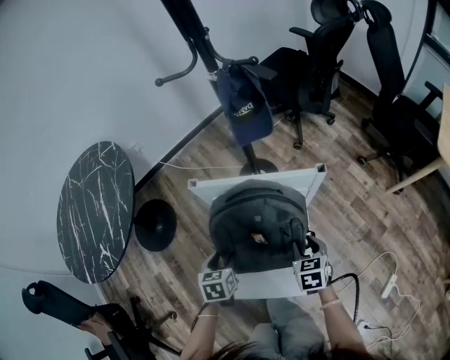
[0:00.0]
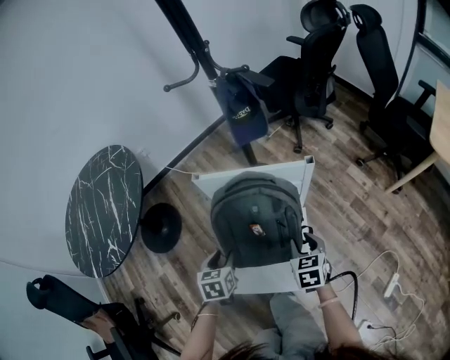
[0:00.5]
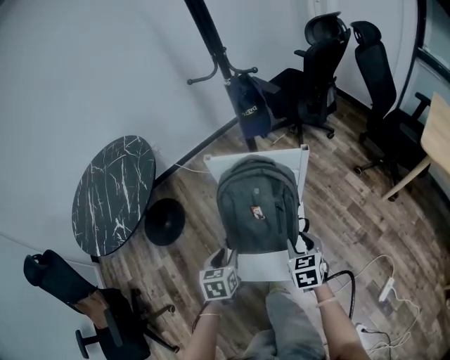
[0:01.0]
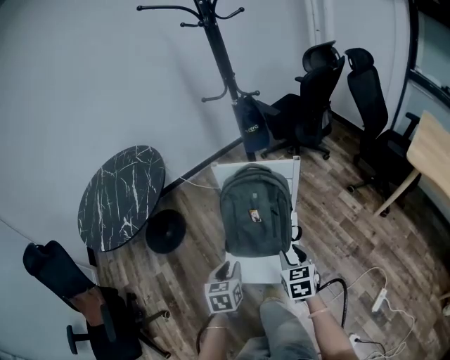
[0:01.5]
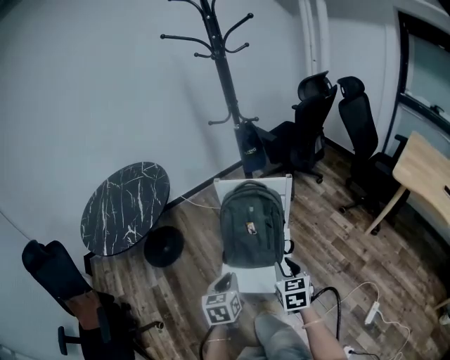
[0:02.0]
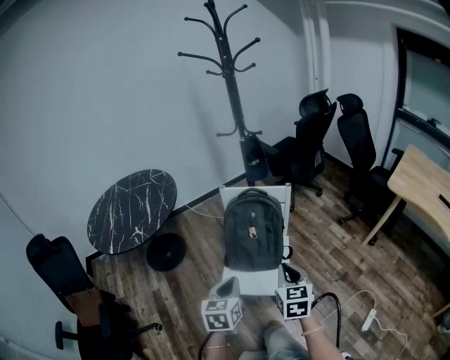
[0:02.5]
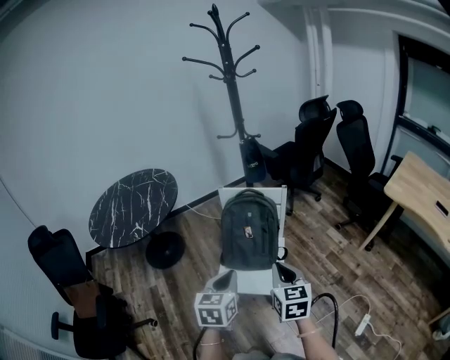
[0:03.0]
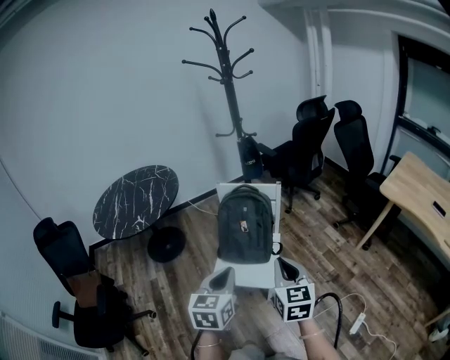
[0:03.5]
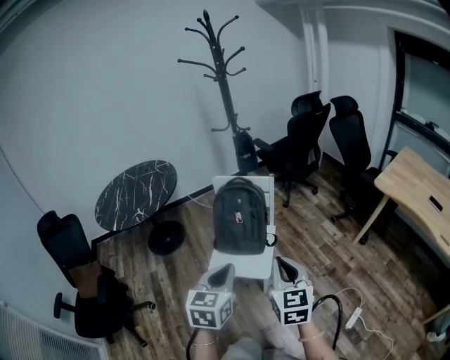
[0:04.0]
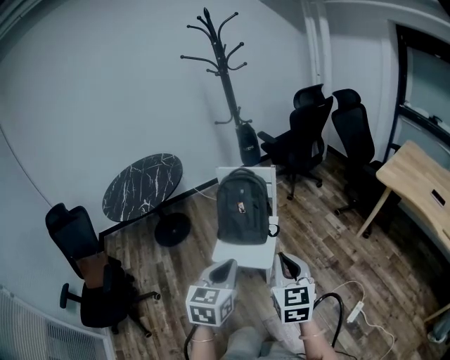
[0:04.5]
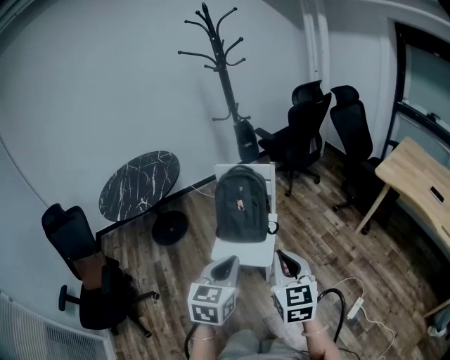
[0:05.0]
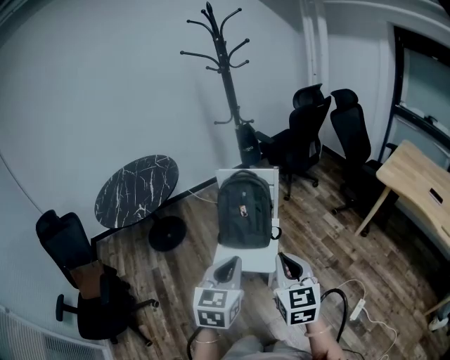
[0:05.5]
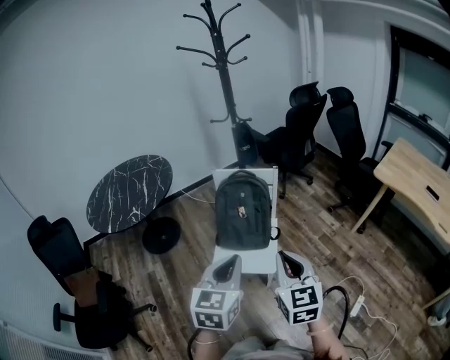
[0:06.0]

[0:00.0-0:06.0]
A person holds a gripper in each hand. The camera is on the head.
0:00.0 to 0:02.0: Both grippers travel together backward and upward, some 35 cm. The left gripper swivels about 20 degrees, and closes up.
0:02.0 to 0:04.0: Both grippers travel together backward, upward and to the right, about 30 cm. The right gripper closes up.
0:04.0 to 0:06.0: The two grippers go some 5 cm to the left.

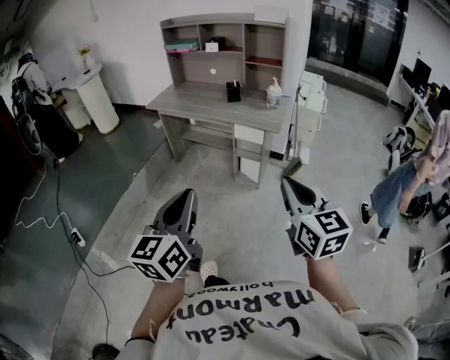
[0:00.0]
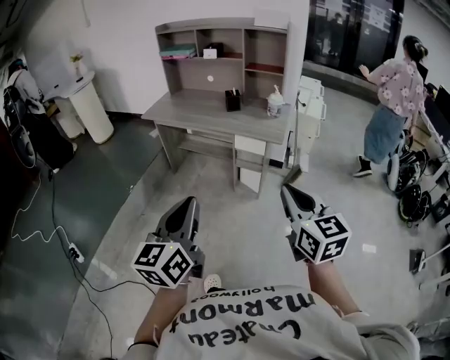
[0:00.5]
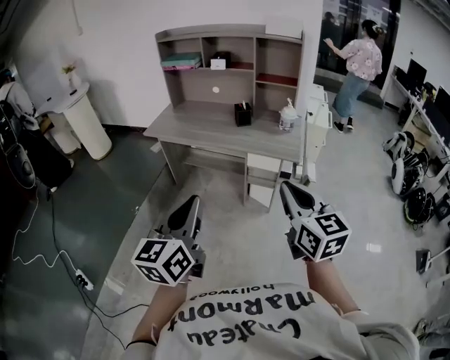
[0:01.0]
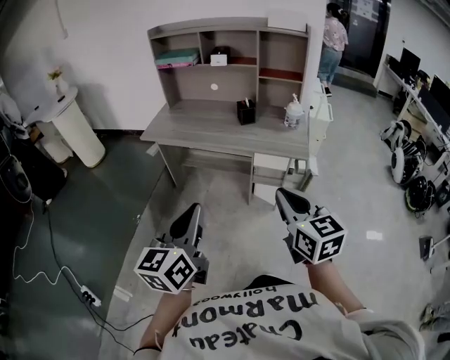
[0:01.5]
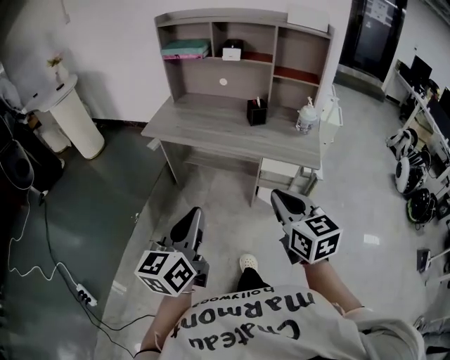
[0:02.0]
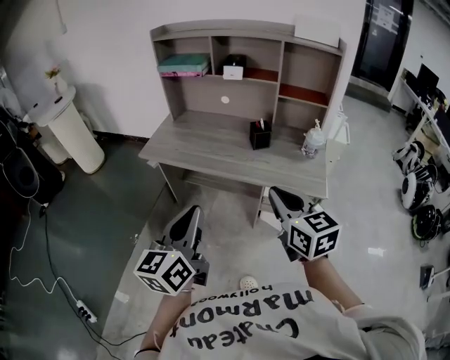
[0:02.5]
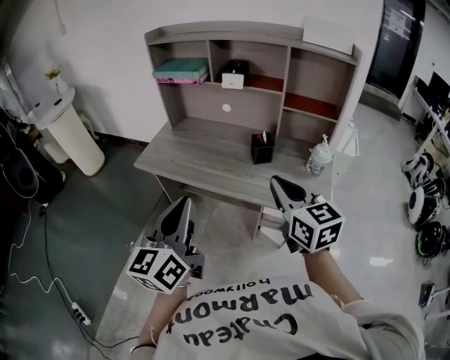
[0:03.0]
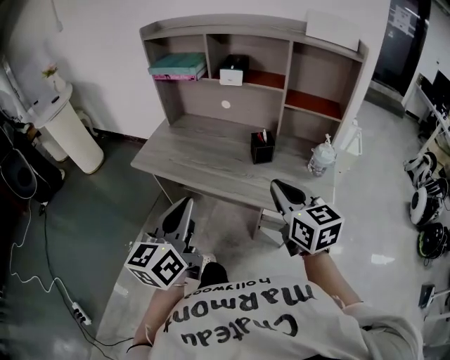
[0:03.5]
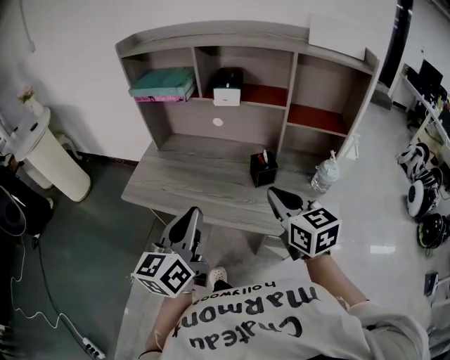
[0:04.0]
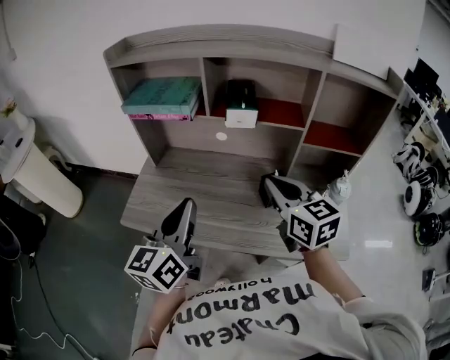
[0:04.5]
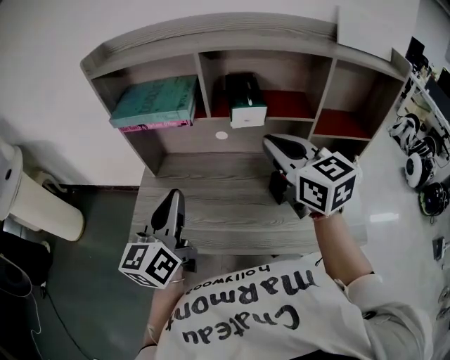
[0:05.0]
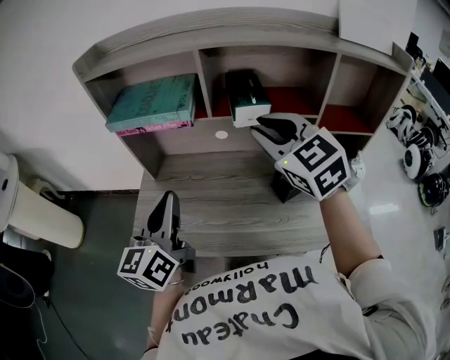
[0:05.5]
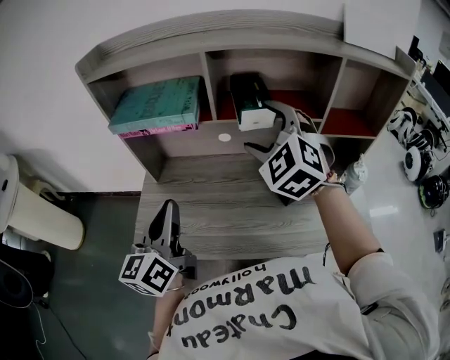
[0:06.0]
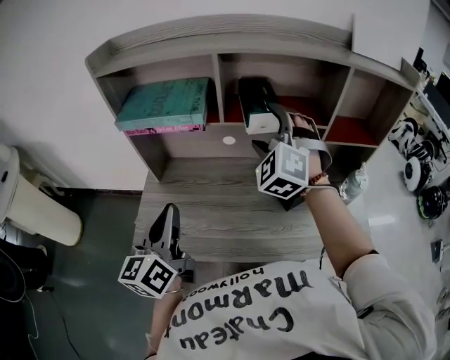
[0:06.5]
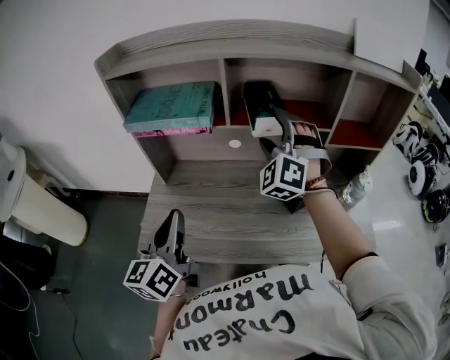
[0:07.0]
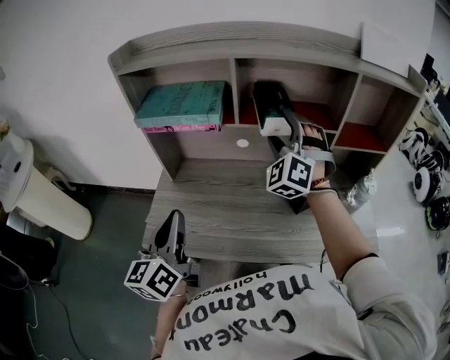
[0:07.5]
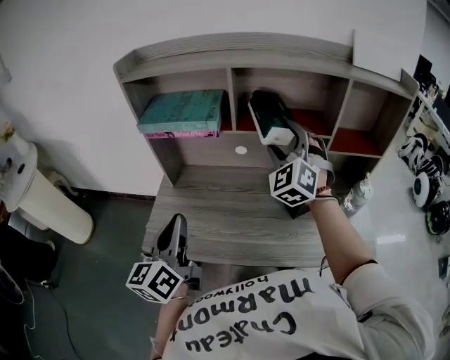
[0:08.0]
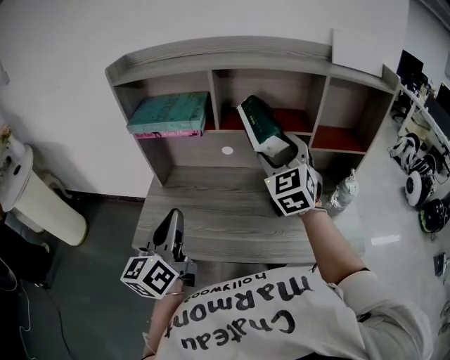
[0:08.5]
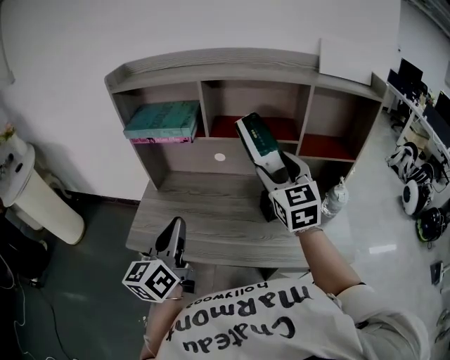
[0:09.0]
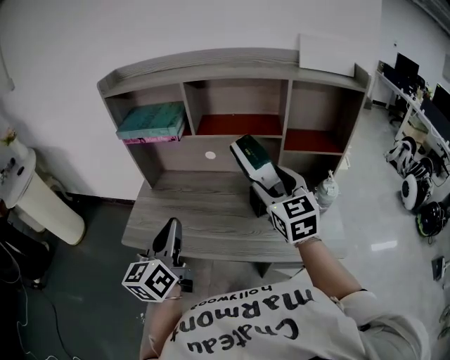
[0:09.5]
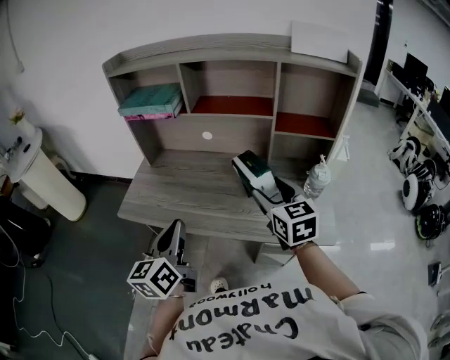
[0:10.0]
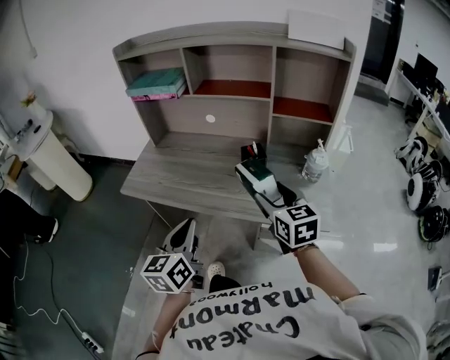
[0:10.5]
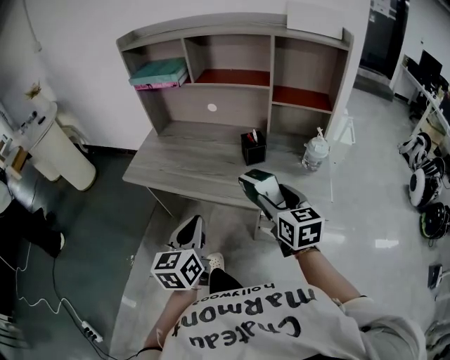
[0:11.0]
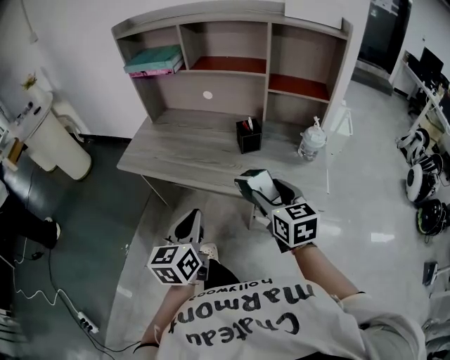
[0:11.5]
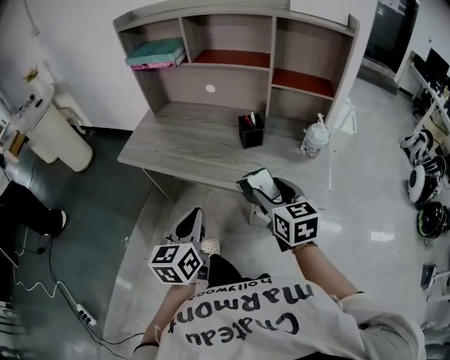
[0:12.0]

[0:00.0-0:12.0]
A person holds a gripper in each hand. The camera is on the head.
0:00.0 to 0:02.0: Both grippers move forward and to the left, some 35 cm.
0:02.0 to 0:04.0: The grippers both shift forward by roughly 35 cm.
0:04.0 to 0:06.0: Both grippers move forward and to the left, roughly 30 cm. The right gripper twists roughly 50 degrees counterclockwise, seen from behind, and opens its fingers.
0:06.0 to 0:08.0: The left gripper shifts by about 5 cm.
0:08.0 to 0:10.0: The left gripper moves to the right and backward, some 20 cm. Meanwhile the right gripper shifts about 25 cm backward, to the right and downward, and rotates around the line of its fingers by some 50 degrees, clockwise from behind.
0:10.0 to 0:12.0: The left gripper shifts about 20 cm backward, to the right and downward. Meanwhile the right gripper heads backward and downward, covering approximately 15 cm.

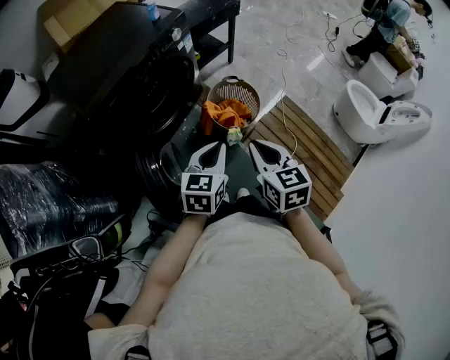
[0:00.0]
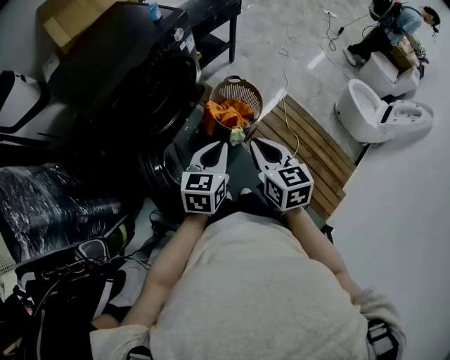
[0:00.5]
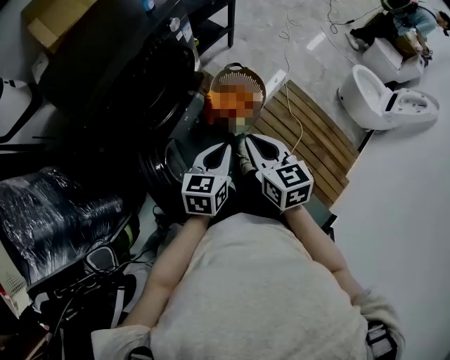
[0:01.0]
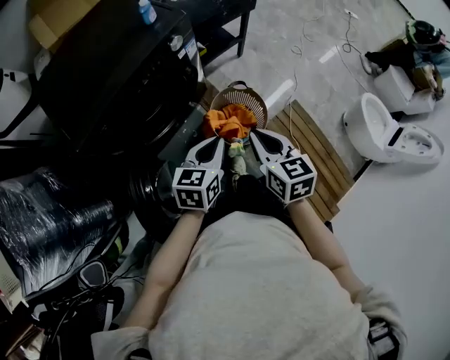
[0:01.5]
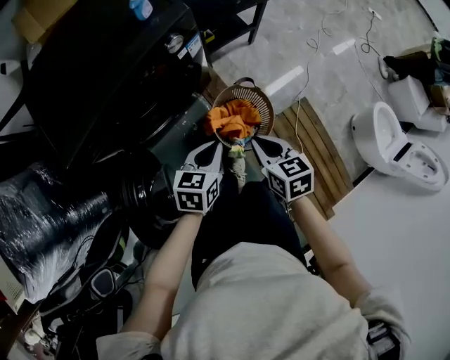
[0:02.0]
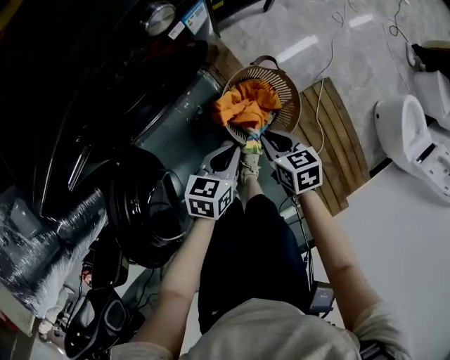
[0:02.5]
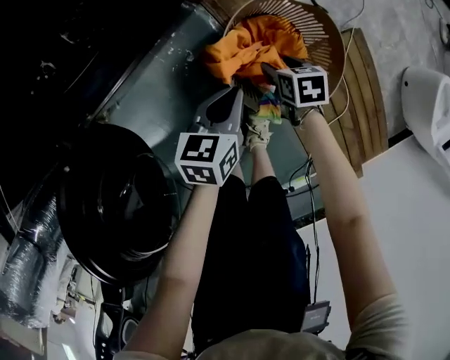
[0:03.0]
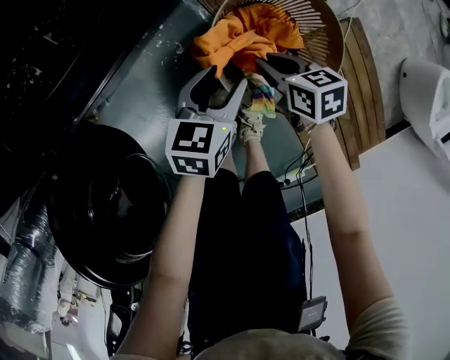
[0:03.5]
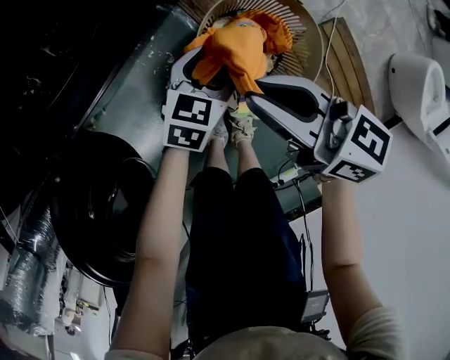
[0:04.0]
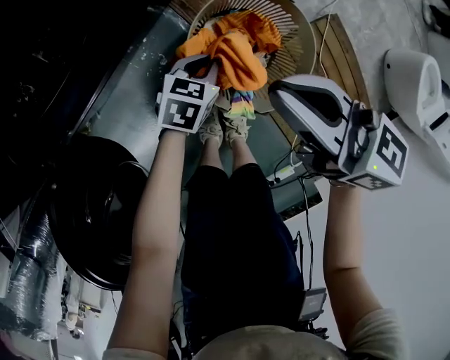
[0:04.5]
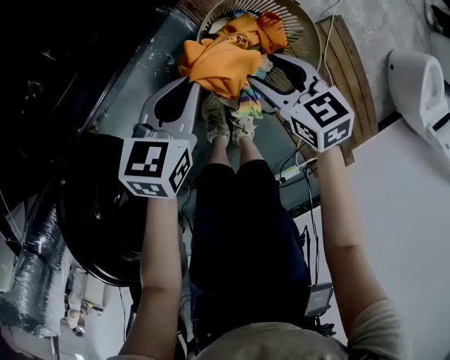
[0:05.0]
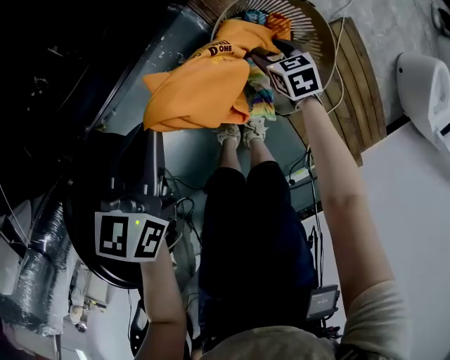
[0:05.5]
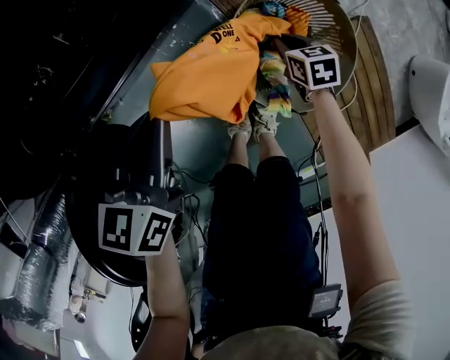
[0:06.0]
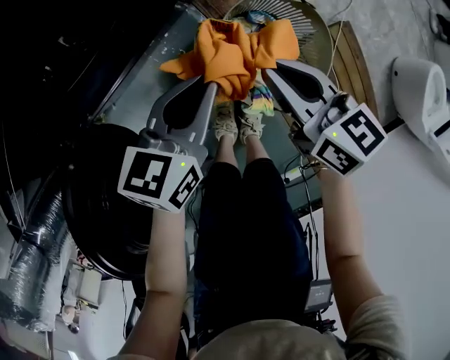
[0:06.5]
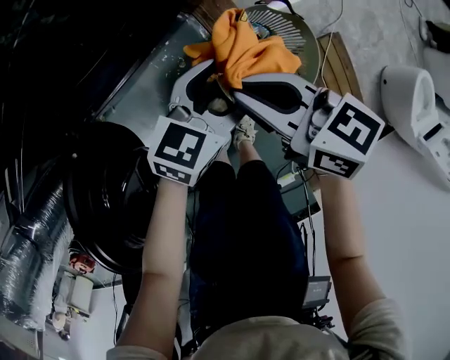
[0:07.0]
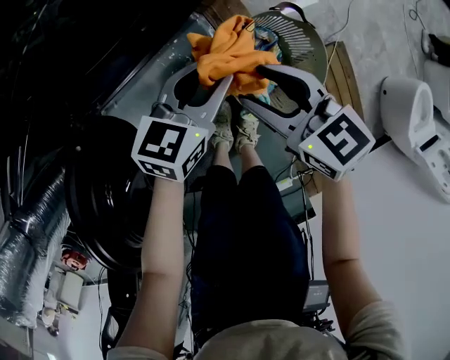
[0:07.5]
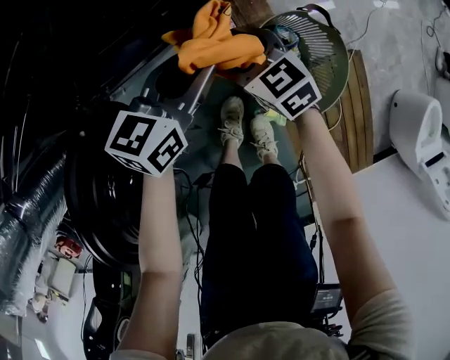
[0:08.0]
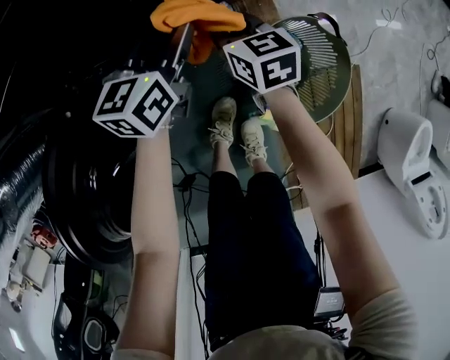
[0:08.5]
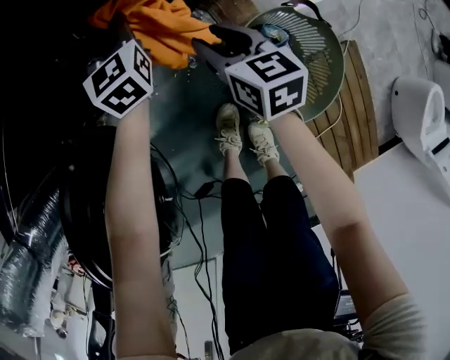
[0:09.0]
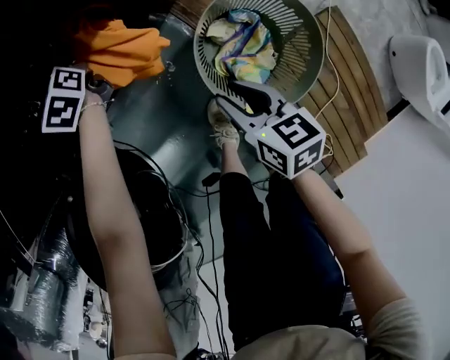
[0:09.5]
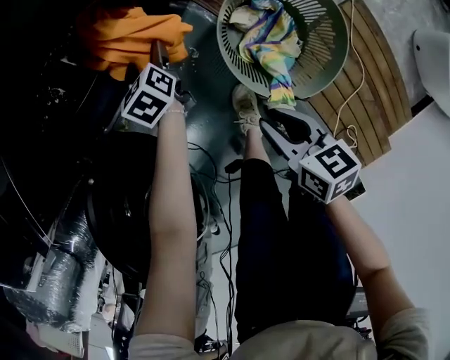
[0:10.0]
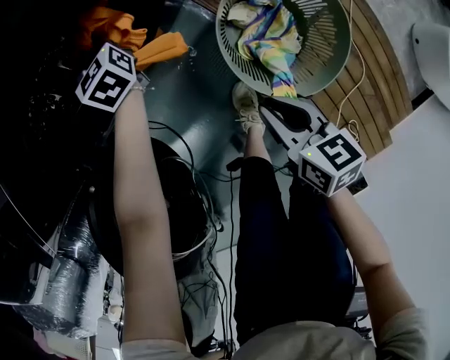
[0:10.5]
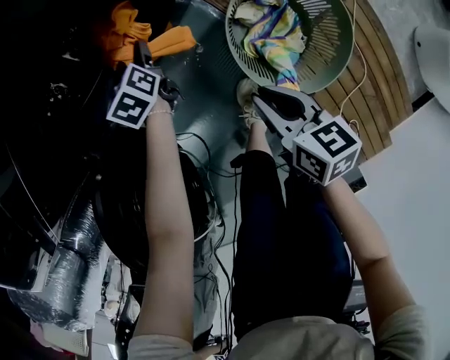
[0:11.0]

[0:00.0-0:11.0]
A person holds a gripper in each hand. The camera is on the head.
0:00.0 to 0:02.0: Both grippers move forward and downward, about 30 cm. The right gripper swivels approximately 20 degrees.
0:02.0 to 0:03.5: Both grippers travel together downward, about 40 cm. The left gripper opens its fingers. The right gripper changes its angle by about 20 degrees, and opens and closes again.
0:03.5 to 0:05.5: The right gripper goes upward and returns, some 25 cm each way, and opens up, while the left gripper goes roughly 20 cm upward and to the left, and closes up.
0:05.5 to 0:07.5: The left gripper goes roughly 10 cm to the right, turns by roughly 20 degrees, and opens, then closes once more, while the right gripper is displaced upward by roughly 30 cm, rotates approximately 30 degrees, and closes and opens again.
0:07.5 to 0:09.0: The left gripper moves forward and to the left, about 25 cm, and turns by approximately 50 degrees. The right gripper travels downward and forward by about 15 cm.
0:09.0 to 0:11.0: The right gripper travels backward by approximately 20 cm, and swivels roughly 20 degrees. Meanwhile the left gripper moves forward and backward over about 15 cm, changing direction 3 times, swivels roughly 30 degrees, and opens up.
